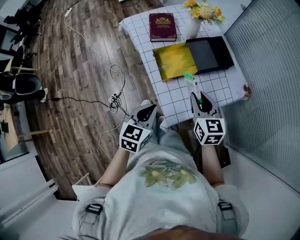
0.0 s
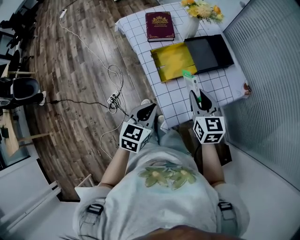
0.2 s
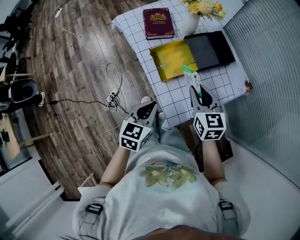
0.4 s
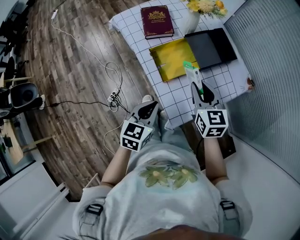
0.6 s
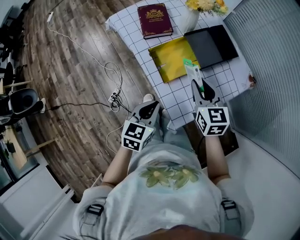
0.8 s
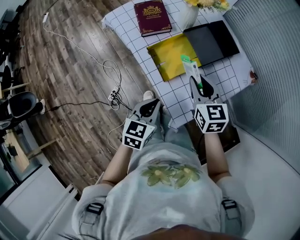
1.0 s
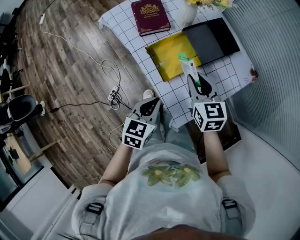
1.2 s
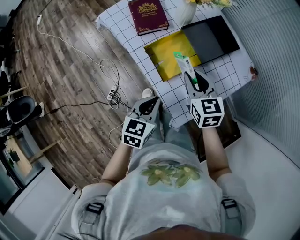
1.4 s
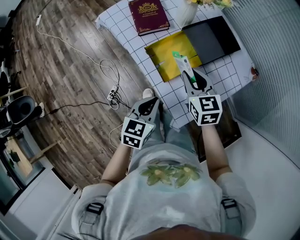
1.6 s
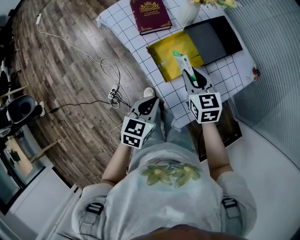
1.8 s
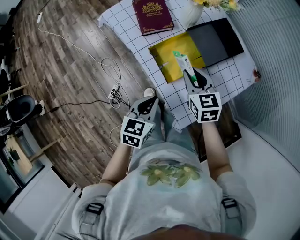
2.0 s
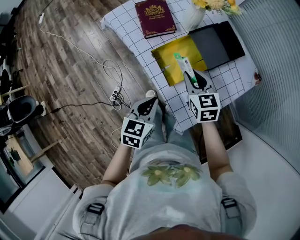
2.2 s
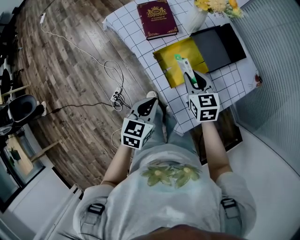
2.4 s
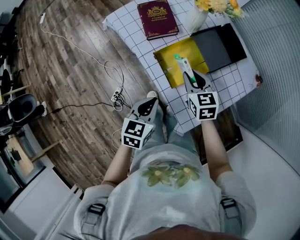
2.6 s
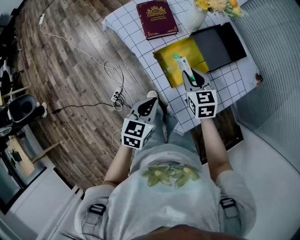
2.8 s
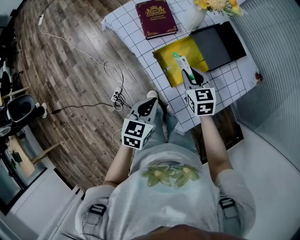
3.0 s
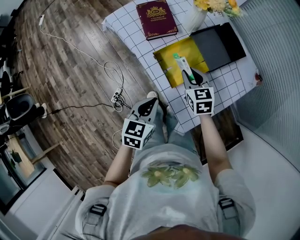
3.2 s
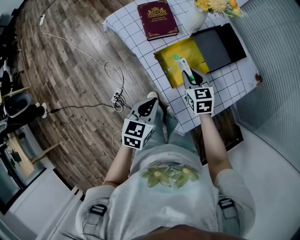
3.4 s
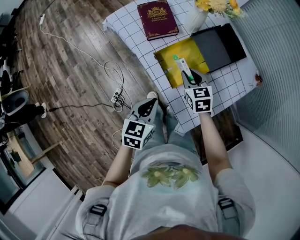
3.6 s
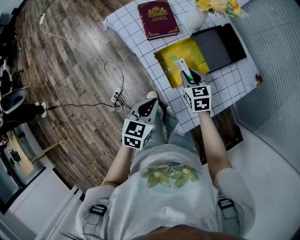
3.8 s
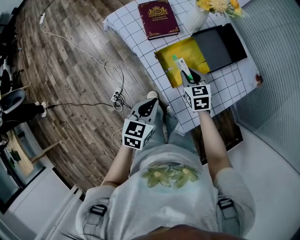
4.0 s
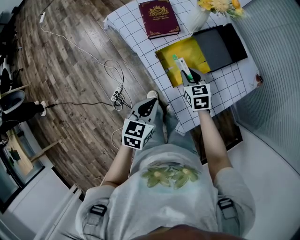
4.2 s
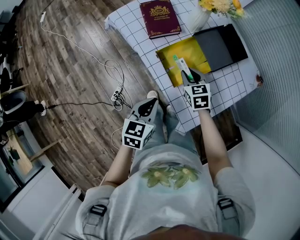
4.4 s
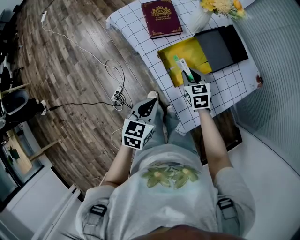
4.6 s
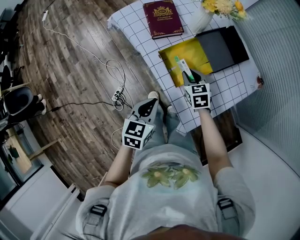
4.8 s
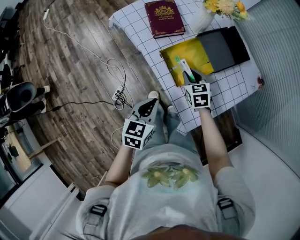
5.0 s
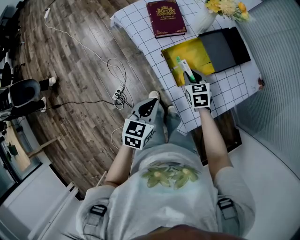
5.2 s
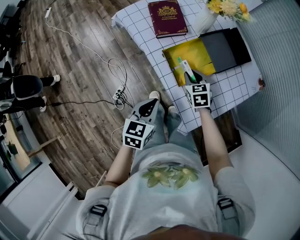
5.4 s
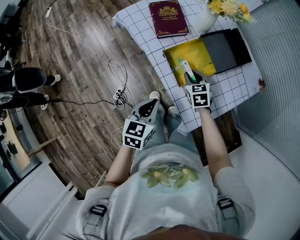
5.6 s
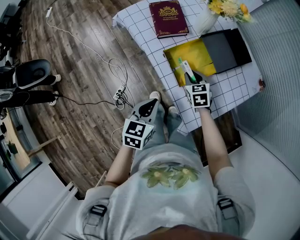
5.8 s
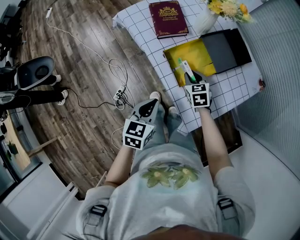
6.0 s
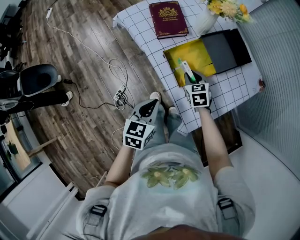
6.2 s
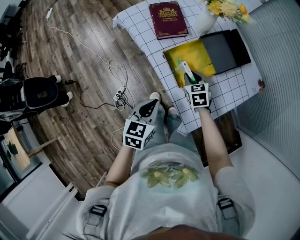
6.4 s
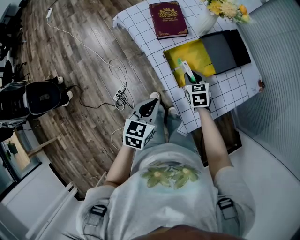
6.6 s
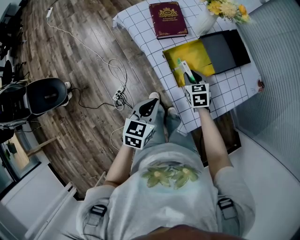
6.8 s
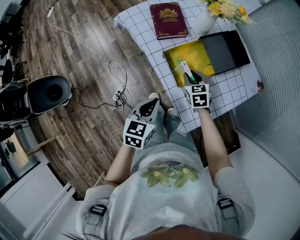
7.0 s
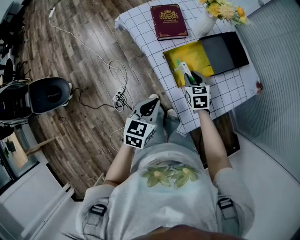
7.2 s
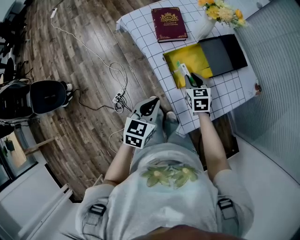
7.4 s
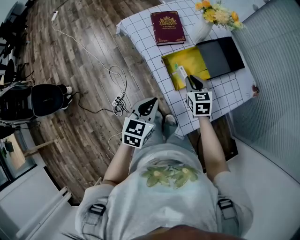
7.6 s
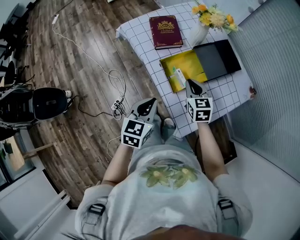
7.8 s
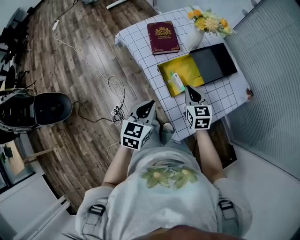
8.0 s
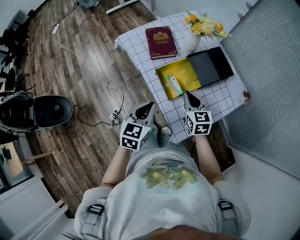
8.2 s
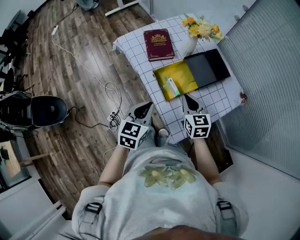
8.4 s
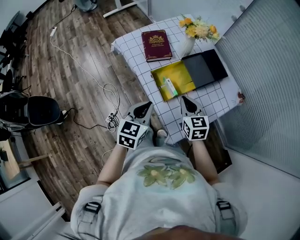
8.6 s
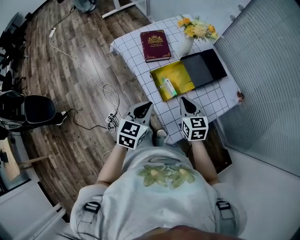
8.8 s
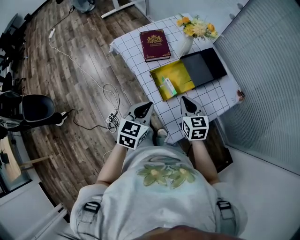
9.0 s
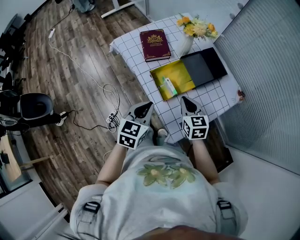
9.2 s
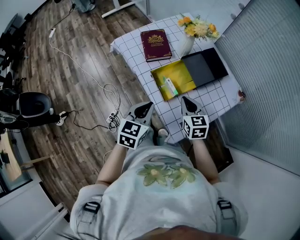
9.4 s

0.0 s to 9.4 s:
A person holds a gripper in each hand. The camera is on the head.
0.0 to 1.6 s: The left gripper shifts some 10 cm forward and downward, while the right gripper shifts some 15 cm forward, to the left and downward.
1.6 to 3.2 s: The right gripper heads downward, covering roughly 5 cm.
3.2 to 4.8 s: The grippers stay close to where they were, moving slightly.
4.8 to 6.2 s: The grippers make only small movements.
6.2 to 7.8 s: The left gripper shifts approximately 5 cm upward. The right gripper shifts approximately 10 cm upward.
7.8 to 9.4 s: The right gripper changes place by approximately 5 cm.

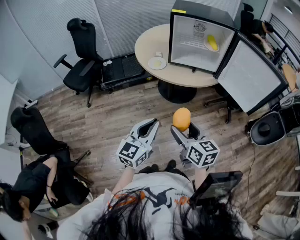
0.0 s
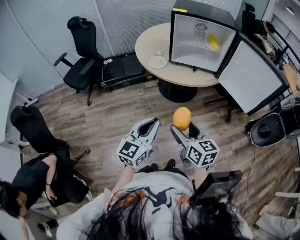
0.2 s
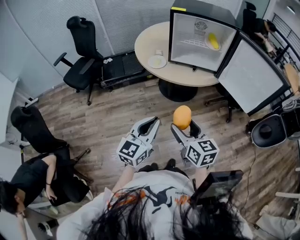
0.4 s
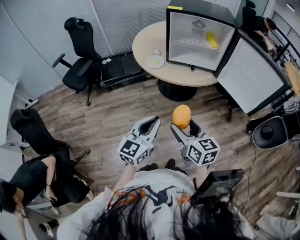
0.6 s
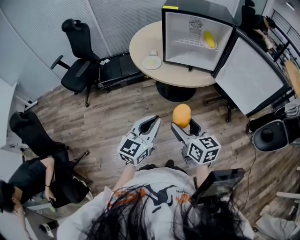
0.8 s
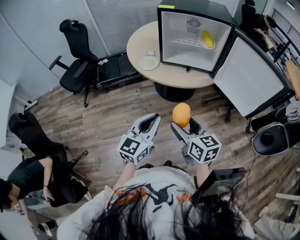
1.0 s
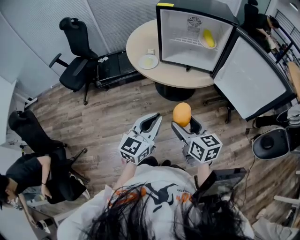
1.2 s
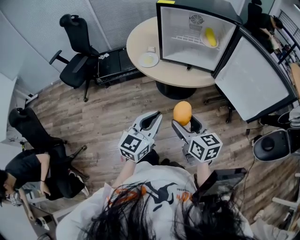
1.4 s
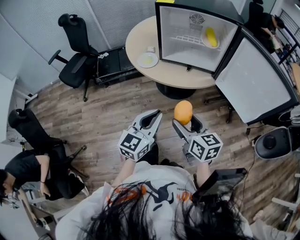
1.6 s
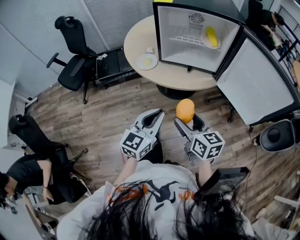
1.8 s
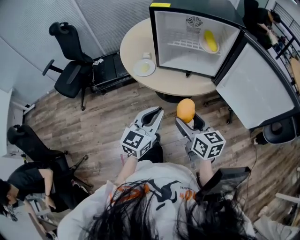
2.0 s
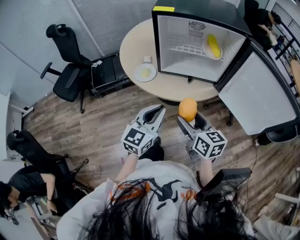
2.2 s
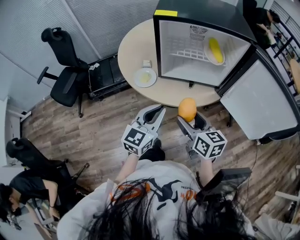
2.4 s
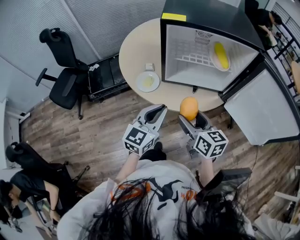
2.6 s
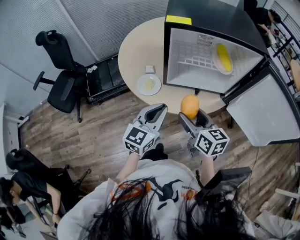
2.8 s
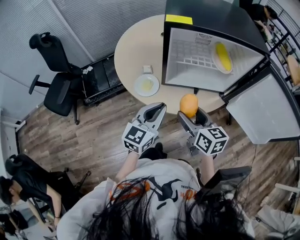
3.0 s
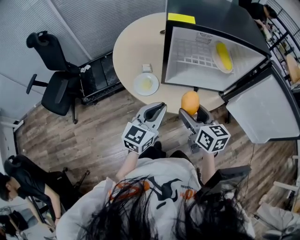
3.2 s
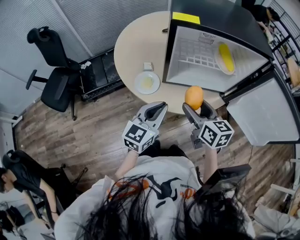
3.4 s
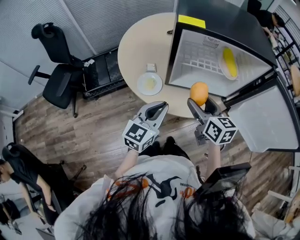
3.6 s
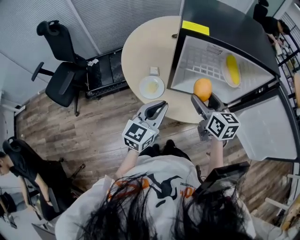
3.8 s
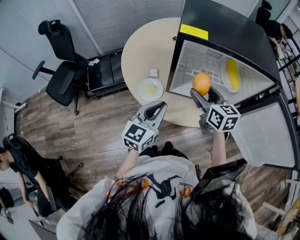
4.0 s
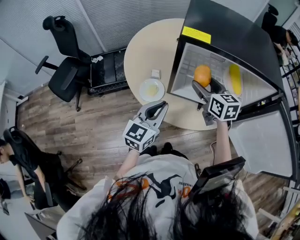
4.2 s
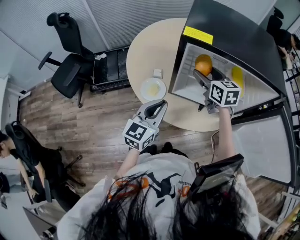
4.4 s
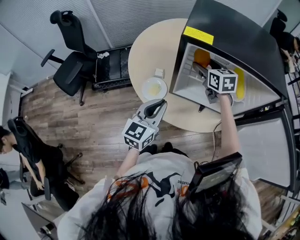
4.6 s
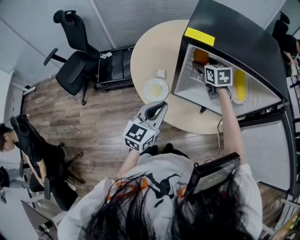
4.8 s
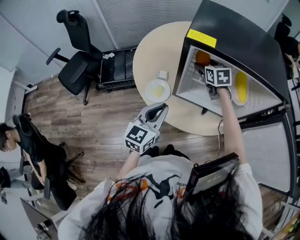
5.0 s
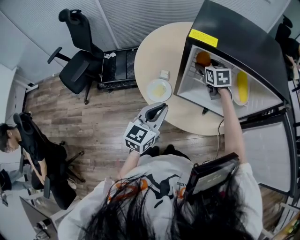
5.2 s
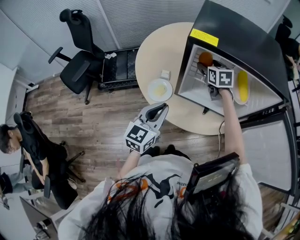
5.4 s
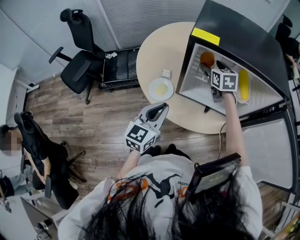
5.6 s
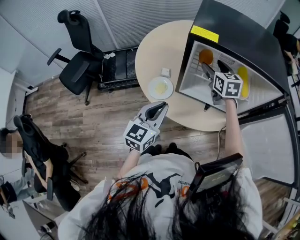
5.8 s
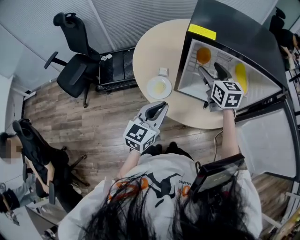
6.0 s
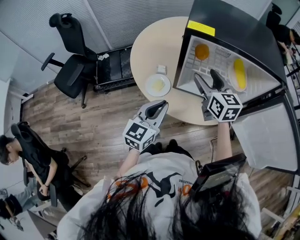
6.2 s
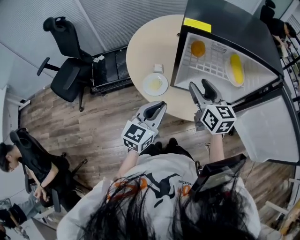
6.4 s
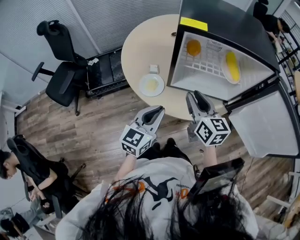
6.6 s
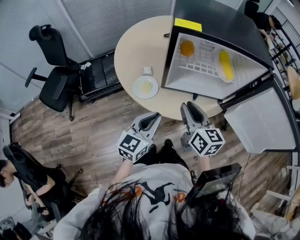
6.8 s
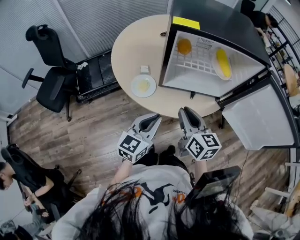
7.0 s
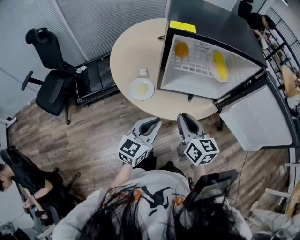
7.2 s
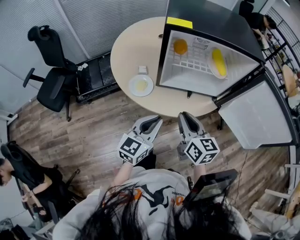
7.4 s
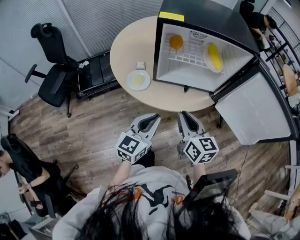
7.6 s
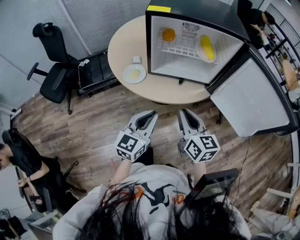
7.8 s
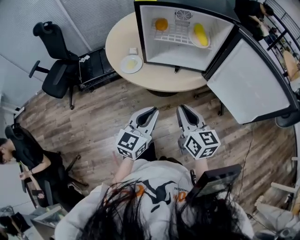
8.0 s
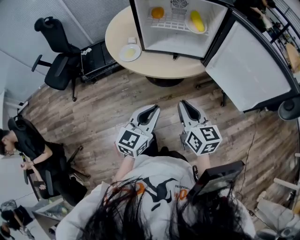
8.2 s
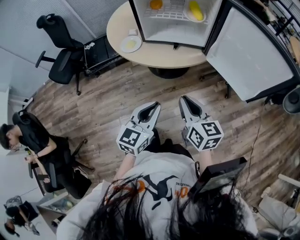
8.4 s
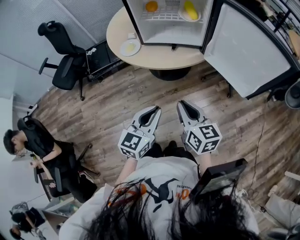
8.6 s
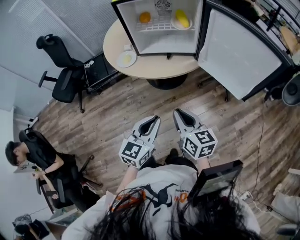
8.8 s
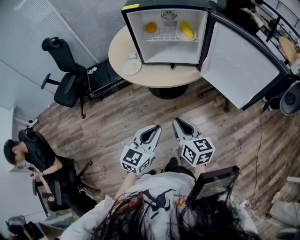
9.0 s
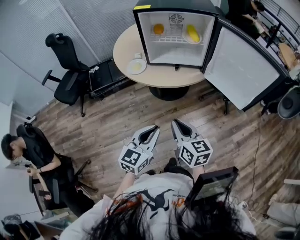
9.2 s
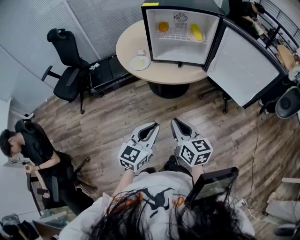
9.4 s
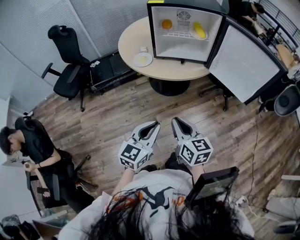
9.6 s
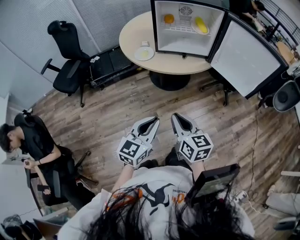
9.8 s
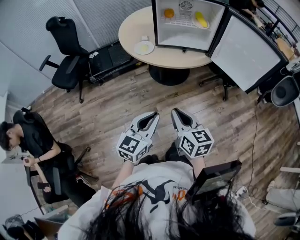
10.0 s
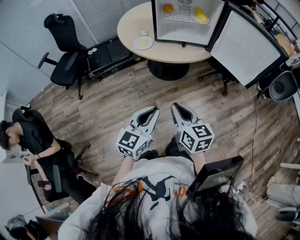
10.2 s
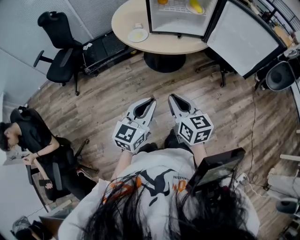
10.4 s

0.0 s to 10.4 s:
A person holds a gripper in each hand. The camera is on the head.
0.0 to 1.4 s: The right gripper moves forward and to the right, roughly 15 cm, while the left gripper is displaced to the right and forward by about 15 cm.
1.4 to 3.0 s: Both grippers travel together forward, roughly 25 cm.
3.0 to 4.4 s: The right gripper shifts roughly 25 cm forward; the left gripper moves forward, some 5 cm.
4.4 to 6.0 s: The right gripper goes forward and returns, some 10 cm each way.
6.0 to 7.4 s: The right gripper travels backward by some 25 cm, swivels approximately 20 degrees, and closes up. The left gripper travels backward by some 5 cm.
7.4 to 9.0 s: The two grippers go approximately 25 cm backward and to the right.
9.0 to 10.4 s: The grippers both shift to the left and backward by about 15 cm.

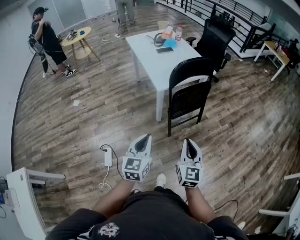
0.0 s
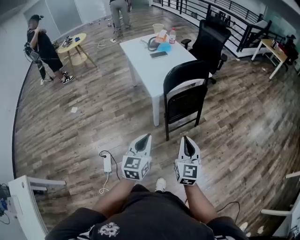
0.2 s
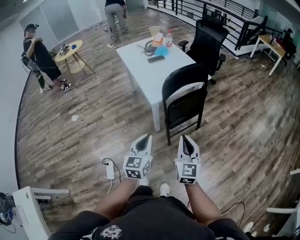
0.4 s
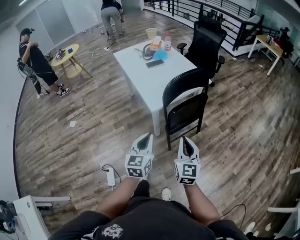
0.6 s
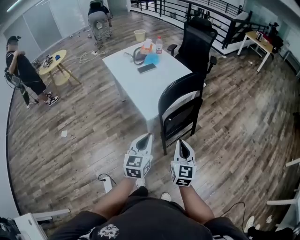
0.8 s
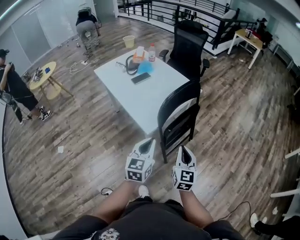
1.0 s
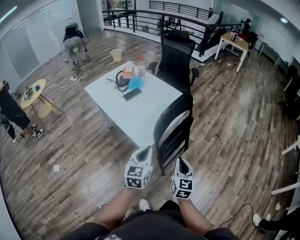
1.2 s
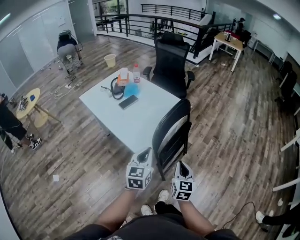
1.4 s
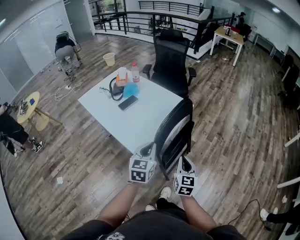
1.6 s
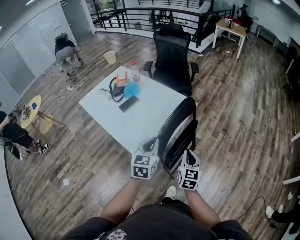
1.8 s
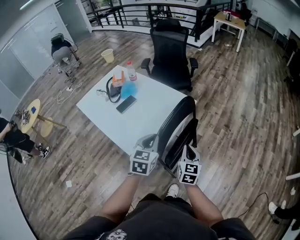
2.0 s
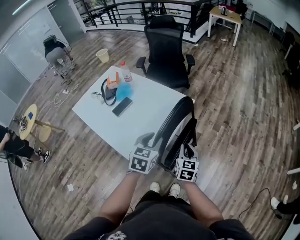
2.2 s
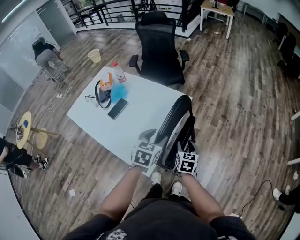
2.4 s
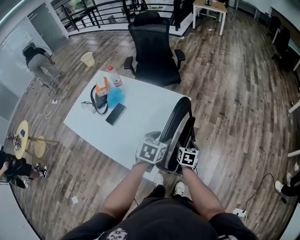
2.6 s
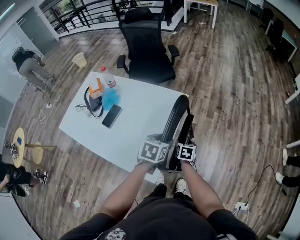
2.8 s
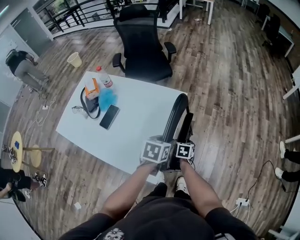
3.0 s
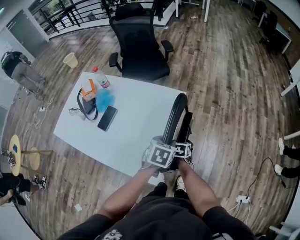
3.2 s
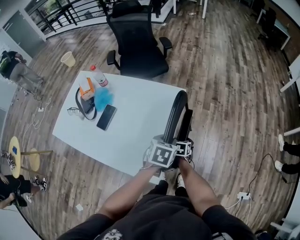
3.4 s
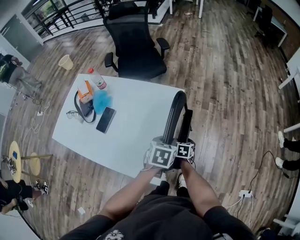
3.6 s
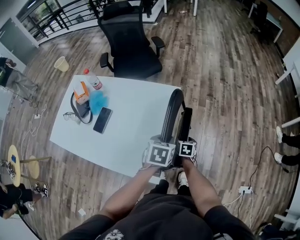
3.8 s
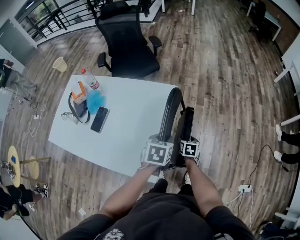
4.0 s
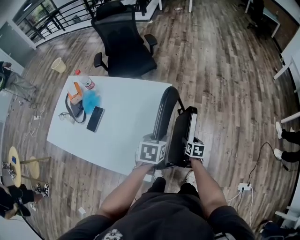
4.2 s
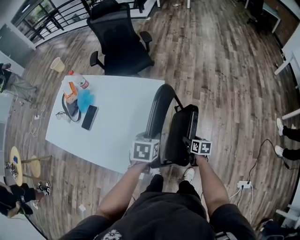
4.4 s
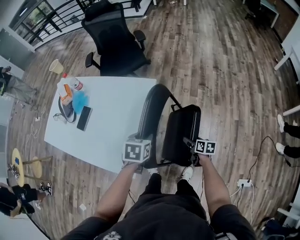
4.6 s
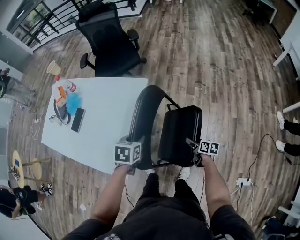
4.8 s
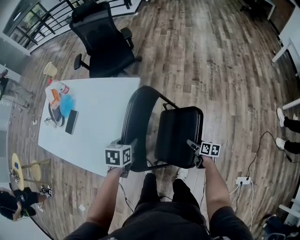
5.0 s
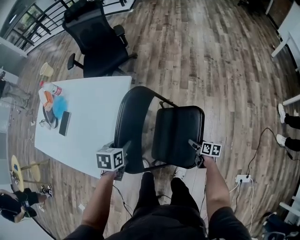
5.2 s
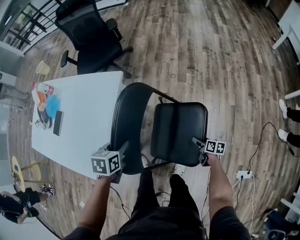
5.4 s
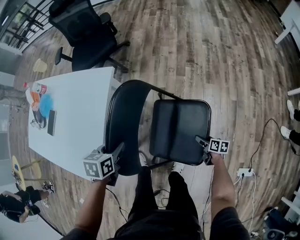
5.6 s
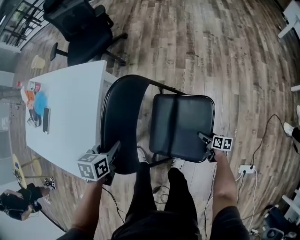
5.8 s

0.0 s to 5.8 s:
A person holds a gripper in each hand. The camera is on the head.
0.0 to 1.4 s: The left gripper changes place by some 40 cm, and changes its angle by some 20 degrees. The right gripper ends up roughly 35 cm from where it was, and rotates approximately 30 degrees.
1.4 to 2.8 s: The right gripper shifts by approximately 35 cm, angles its fingers downward, by approximately 30 degrees, and opens, while the left gripper shifts by about 30 cm, tips its fingers downward by approximately 30 degrees, and opens.
2.8 to 4.4 s: The left gripper shifts some 5 cm to the right, and closes its fingers, while the right gripper moves to the right, some 15 cm.
4.4 to 5.8 s: The right gripper shifts some 40 cm to the right and downward. The left gripper shifts some 20 cm downward and to the right.
